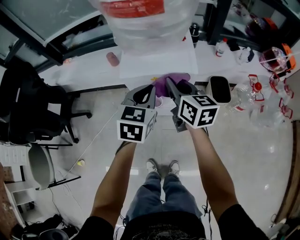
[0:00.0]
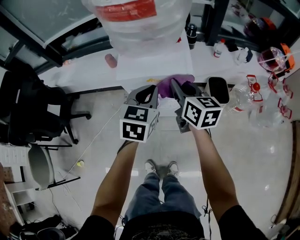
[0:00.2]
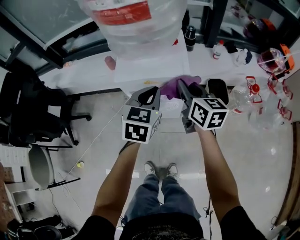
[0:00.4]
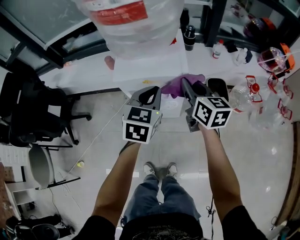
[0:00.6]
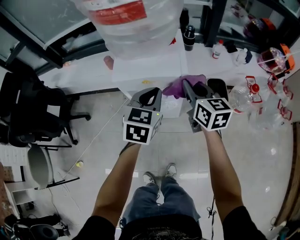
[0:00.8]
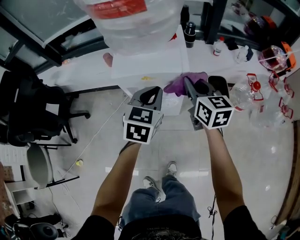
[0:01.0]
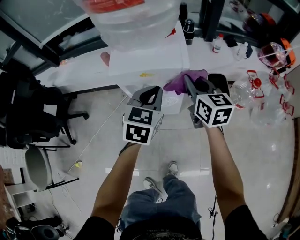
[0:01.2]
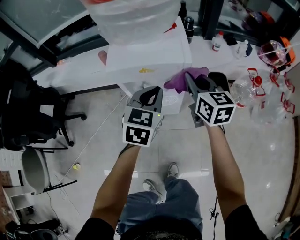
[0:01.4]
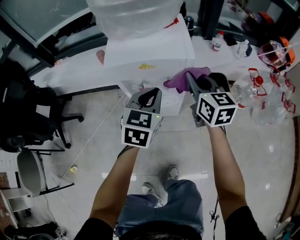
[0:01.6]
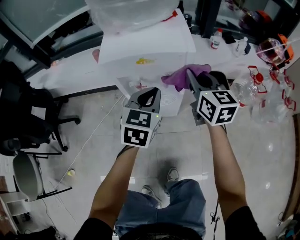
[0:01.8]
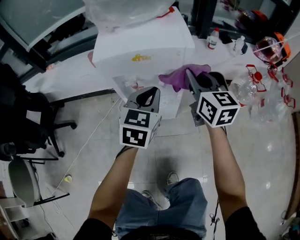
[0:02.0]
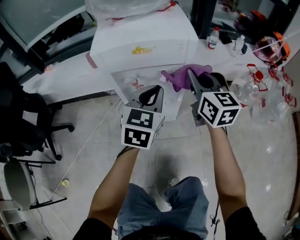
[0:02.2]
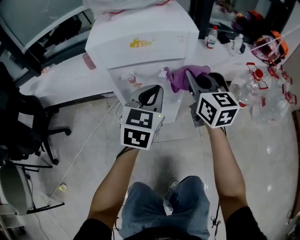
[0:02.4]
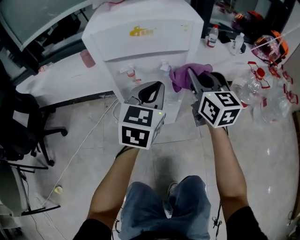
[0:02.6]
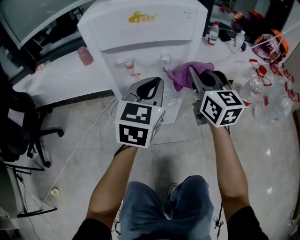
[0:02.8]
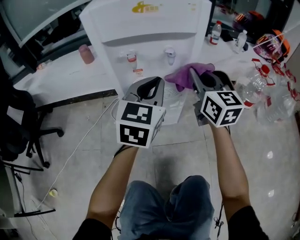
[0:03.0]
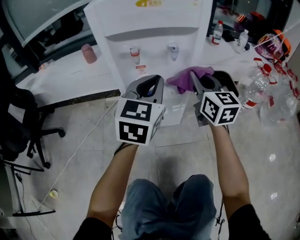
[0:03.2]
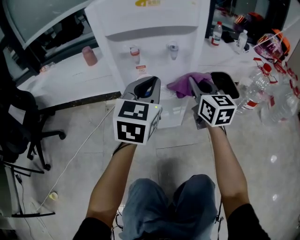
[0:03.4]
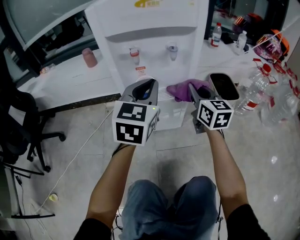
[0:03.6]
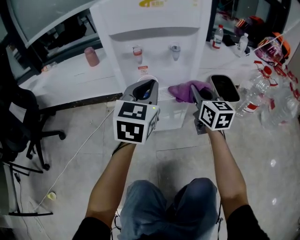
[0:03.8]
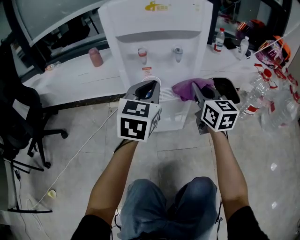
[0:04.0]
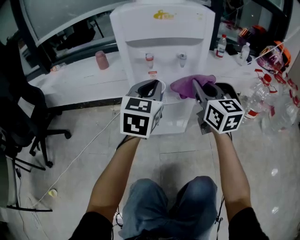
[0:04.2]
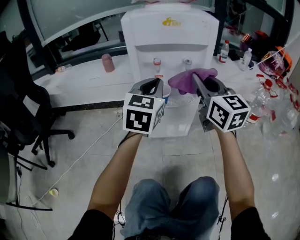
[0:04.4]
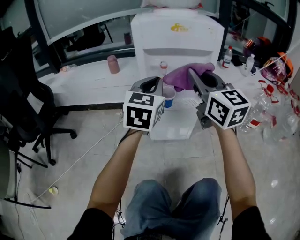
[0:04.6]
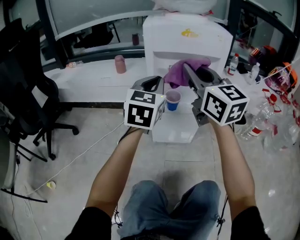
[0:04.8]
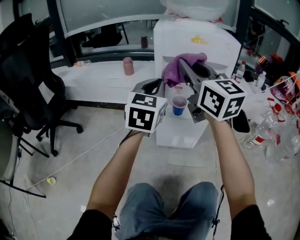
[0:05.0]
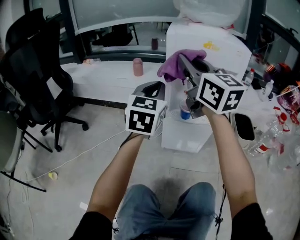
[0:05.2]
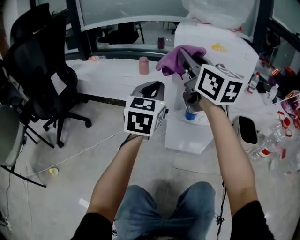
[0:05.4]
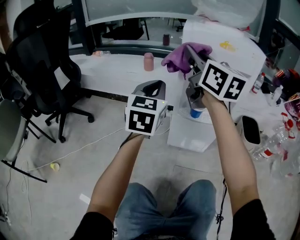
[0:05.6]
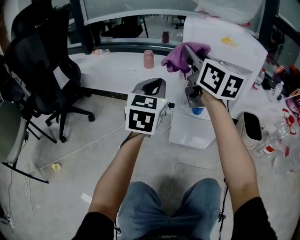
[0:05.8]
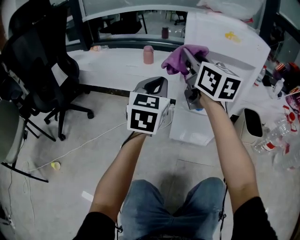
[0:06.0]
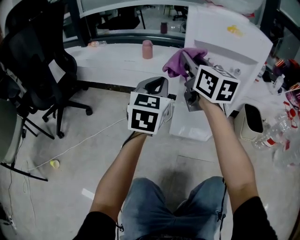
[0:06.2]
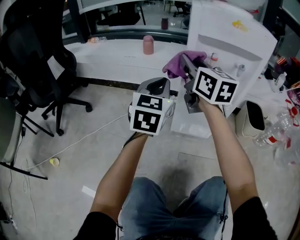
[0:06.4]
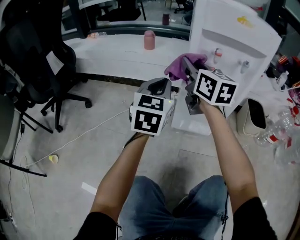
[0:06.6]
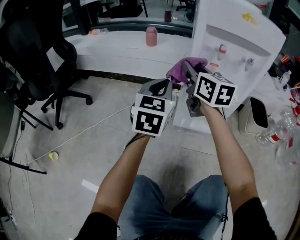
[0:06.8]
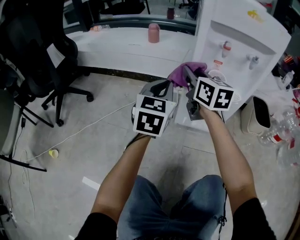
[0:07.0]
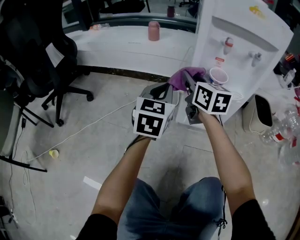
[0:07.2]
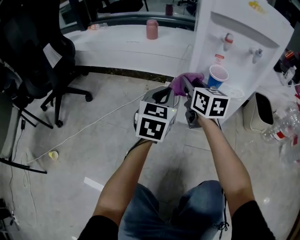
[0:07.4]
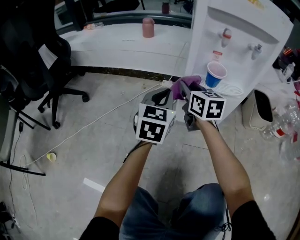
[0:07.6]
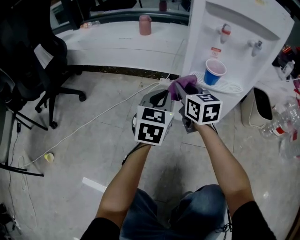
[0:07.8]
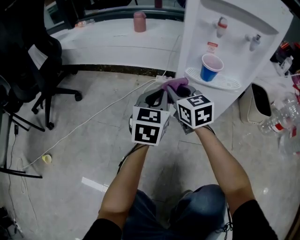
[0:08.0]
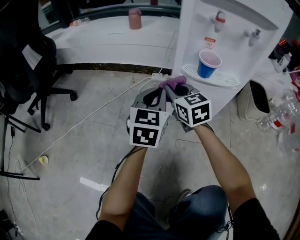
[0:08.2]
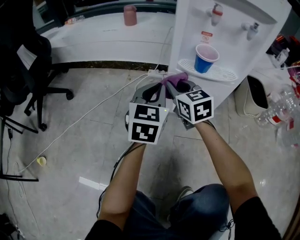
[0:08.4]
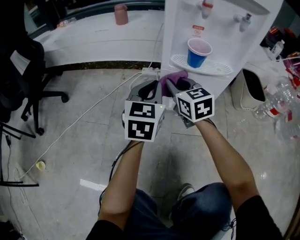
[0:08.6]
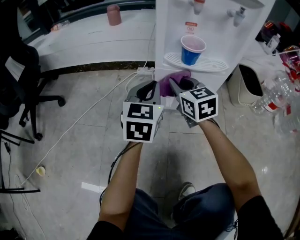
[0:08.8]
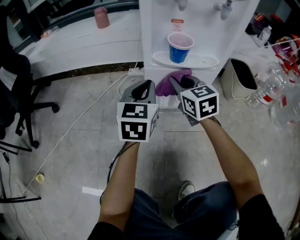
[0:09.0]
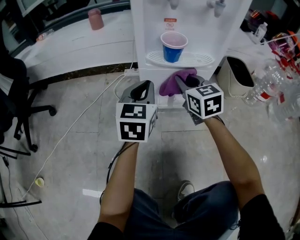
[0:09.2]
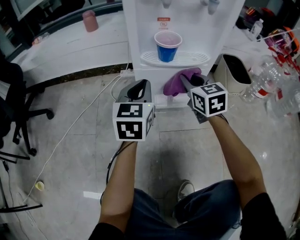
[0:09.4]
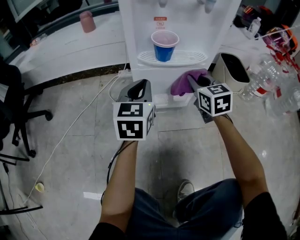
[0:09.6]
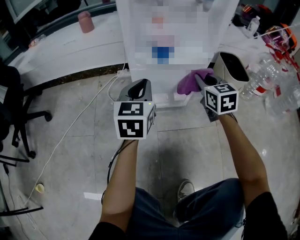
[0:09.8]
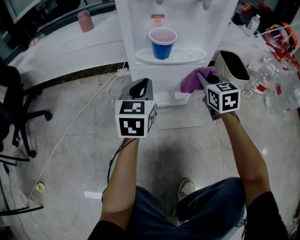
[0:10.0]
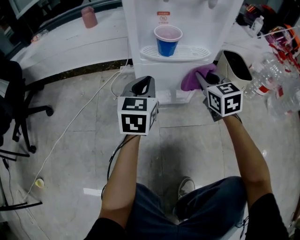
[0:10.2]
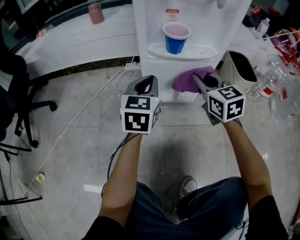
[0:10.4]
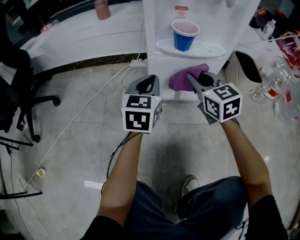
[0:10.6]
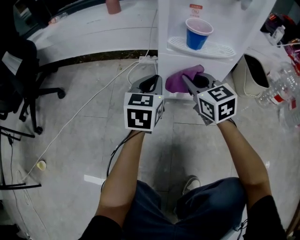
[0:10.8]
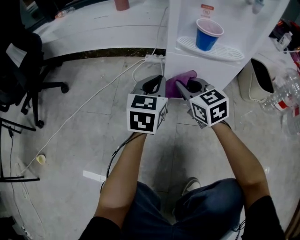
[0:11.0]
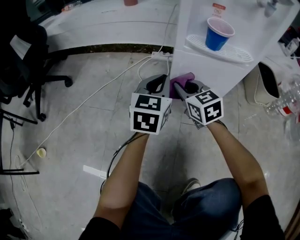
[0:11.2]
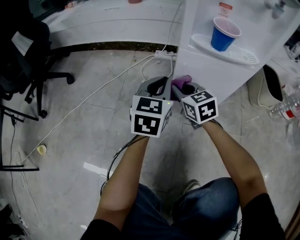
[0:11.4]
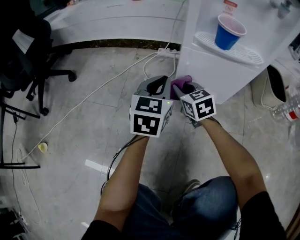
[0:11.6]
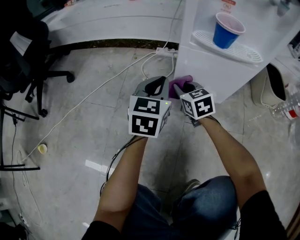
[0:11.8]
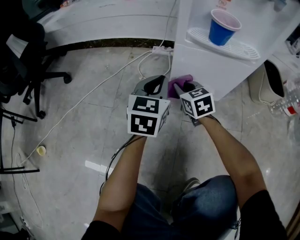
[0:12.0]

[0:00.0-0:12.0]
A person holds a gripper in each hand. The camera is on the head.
0:00.0 to 0:01.6: The left gripper is displaced downward by roughly 10 cm; the right gripper shifts about 10 cm to the right and downward.
0:01.6 to 0:03.0: Both grippers move downward, about 15 cm.
0:03.0 to 0:04.4: The left gripper travels to the left by some 5 cm; the right gripper is displaced backward, to the left and upward by some 10 cm.
0:04.4 to 0:06.0: The left gripper shifts some 15 cm to the left, while the right gripper moves to the left and forward, approximately 20 cm.
0:06.0 to 0:07.6: The right gripper shifts roughly 30 cm downward, and swivels roughly 20 degrees; the left gripper goes about 20 cm downward.
0:07.6 to 0:09.0: The right gripper travels to the right and downward by about 10 cm. Meanwhile the left gripper heads to the right, covering approximately 5 cm.
0:09.0 to 0:10.4: The right gripper moves to the right, about 10 cm.
0:10.4 to 0:12.0: The right gripper travels downward and to the left by some 25 cm; the left gripper shifts approximately 10 cm to the left and downward.

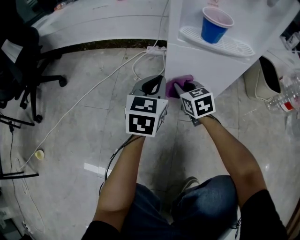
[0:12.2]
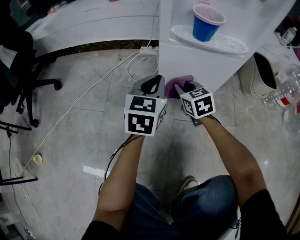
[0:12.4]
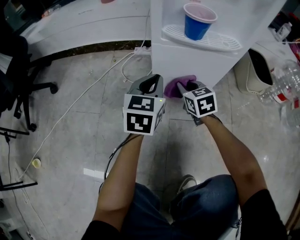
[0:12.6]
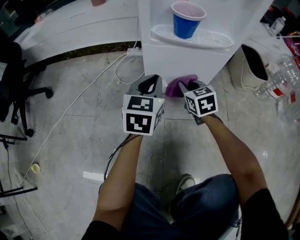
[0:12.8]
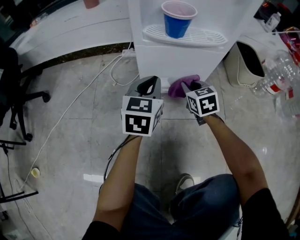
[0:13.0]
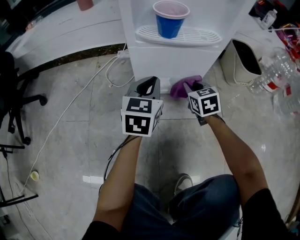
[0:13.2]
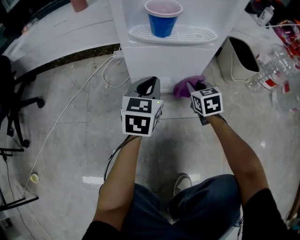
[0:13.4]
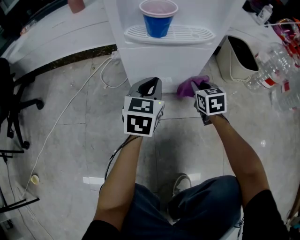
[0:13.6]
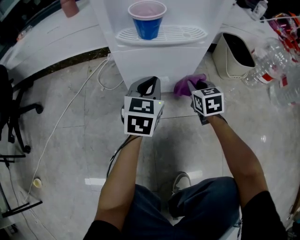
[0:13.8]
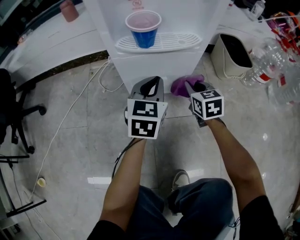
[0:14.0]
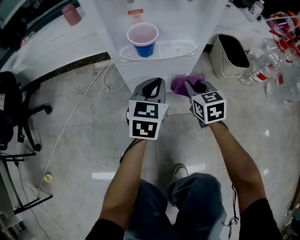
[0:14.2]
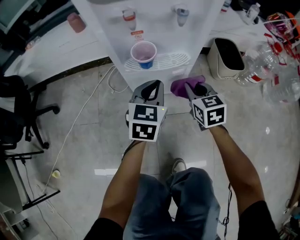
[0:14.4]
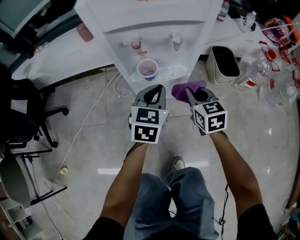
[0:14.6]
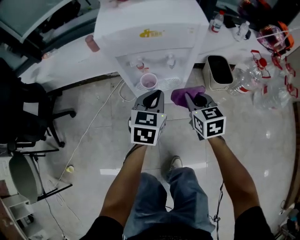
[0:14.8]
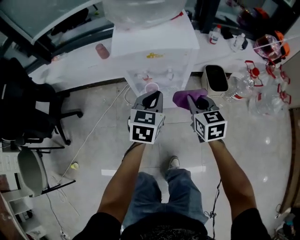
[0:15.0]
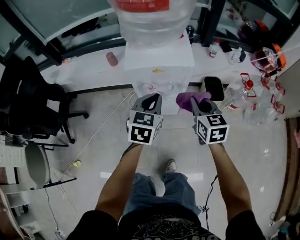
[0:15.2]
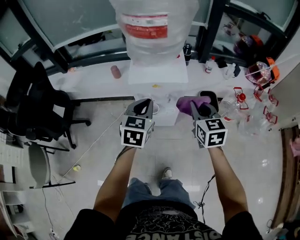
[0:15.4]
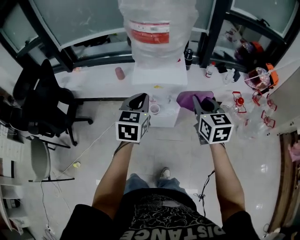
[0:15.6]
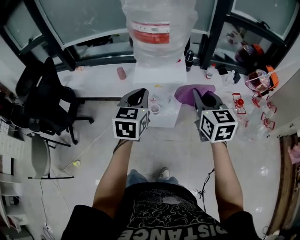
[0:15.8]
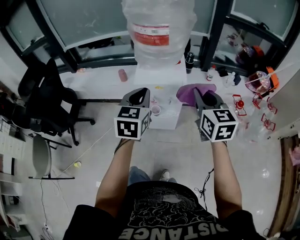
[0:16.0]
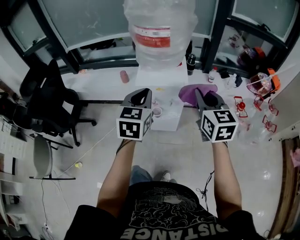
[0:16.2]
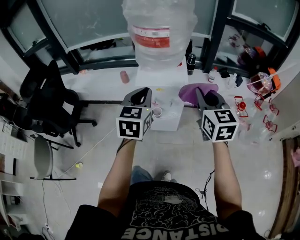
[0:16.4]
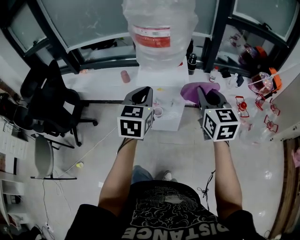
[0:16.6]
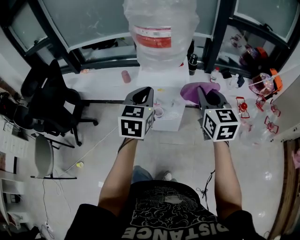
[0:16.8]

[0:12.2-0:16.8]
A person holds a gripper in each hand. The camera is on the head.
0:12.2 to 0:13.8: The right gripper is displaced to the right by about 20 cm, and changes its angle by approximately 20 degrees; the left gripper heads to the right, covering some 15 cm.
0:13.8 to 0:15.2: Both grippers move upward, about 50 cm.
0:15.2 to 0:16.8: The grippers both shift upward by about 20 cm.

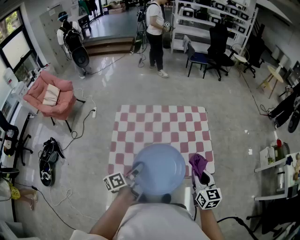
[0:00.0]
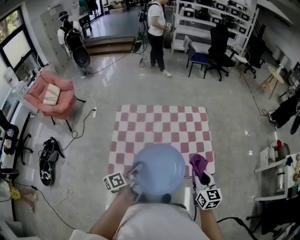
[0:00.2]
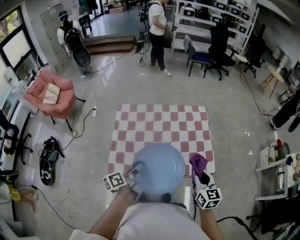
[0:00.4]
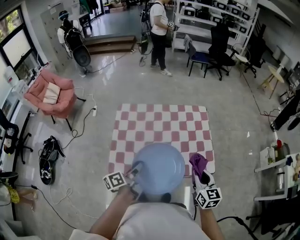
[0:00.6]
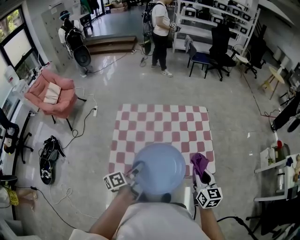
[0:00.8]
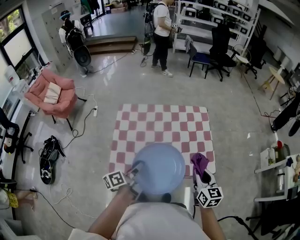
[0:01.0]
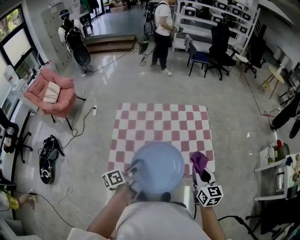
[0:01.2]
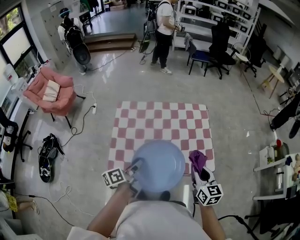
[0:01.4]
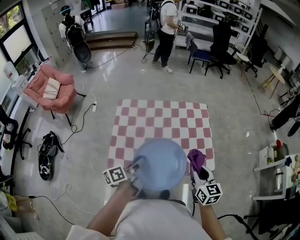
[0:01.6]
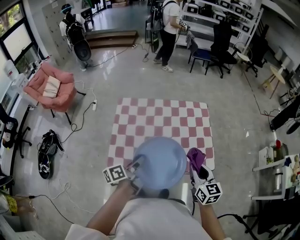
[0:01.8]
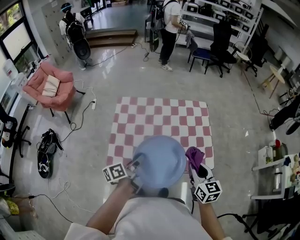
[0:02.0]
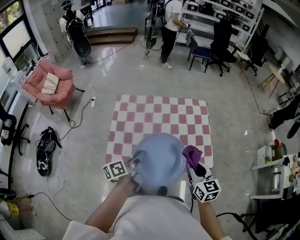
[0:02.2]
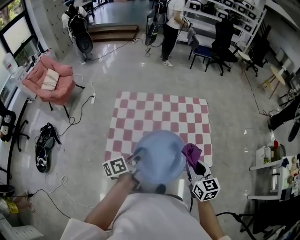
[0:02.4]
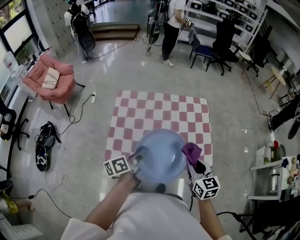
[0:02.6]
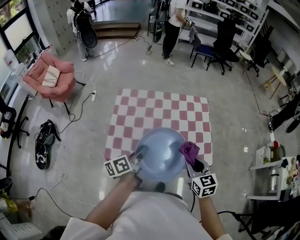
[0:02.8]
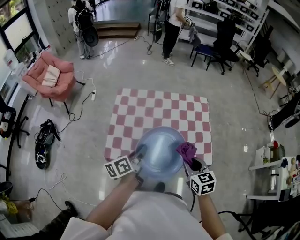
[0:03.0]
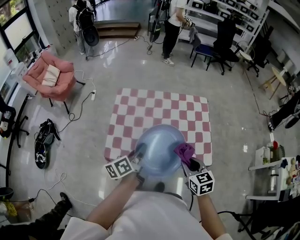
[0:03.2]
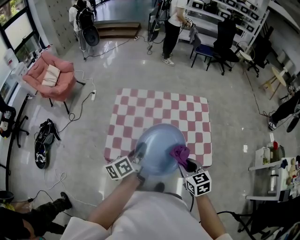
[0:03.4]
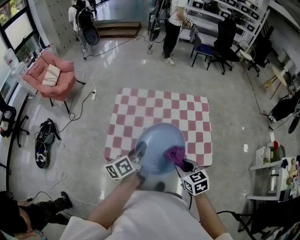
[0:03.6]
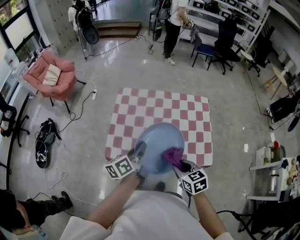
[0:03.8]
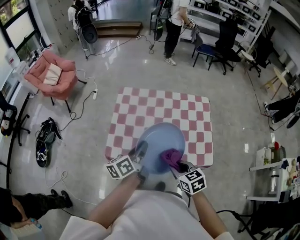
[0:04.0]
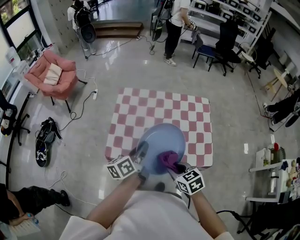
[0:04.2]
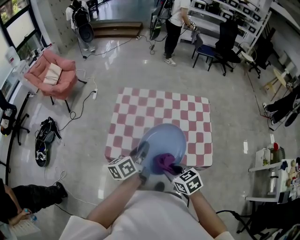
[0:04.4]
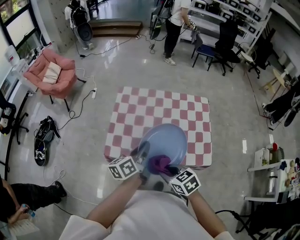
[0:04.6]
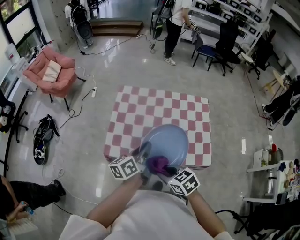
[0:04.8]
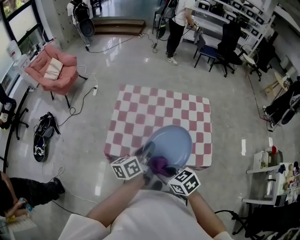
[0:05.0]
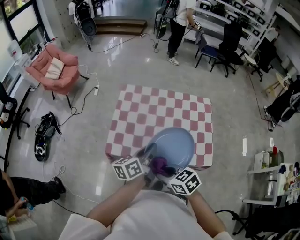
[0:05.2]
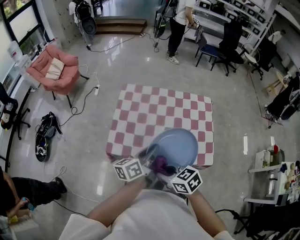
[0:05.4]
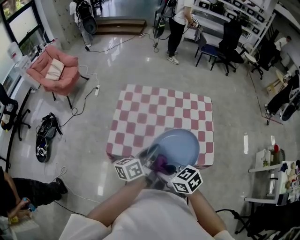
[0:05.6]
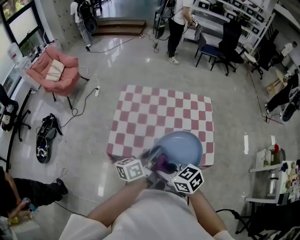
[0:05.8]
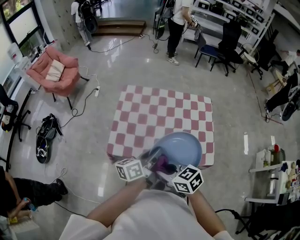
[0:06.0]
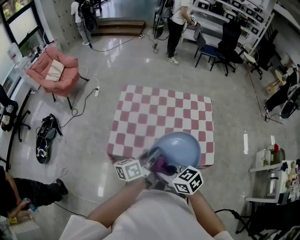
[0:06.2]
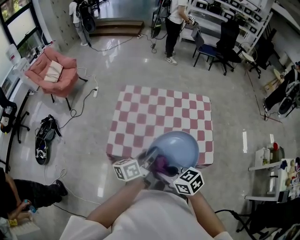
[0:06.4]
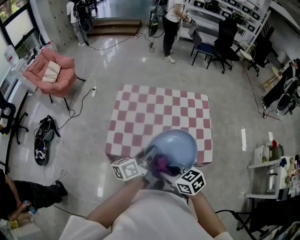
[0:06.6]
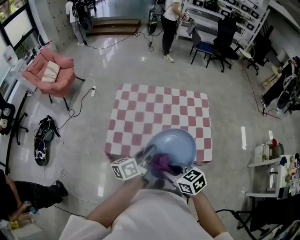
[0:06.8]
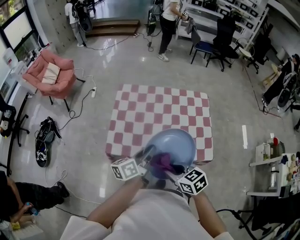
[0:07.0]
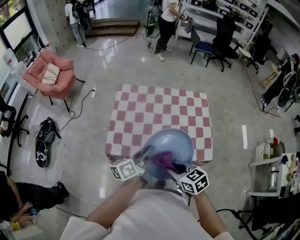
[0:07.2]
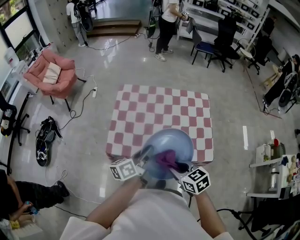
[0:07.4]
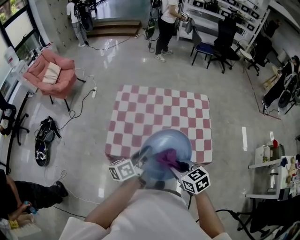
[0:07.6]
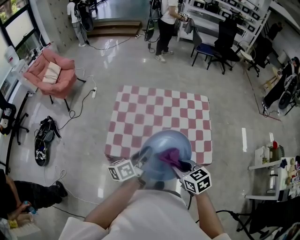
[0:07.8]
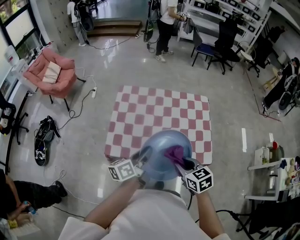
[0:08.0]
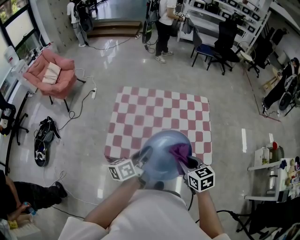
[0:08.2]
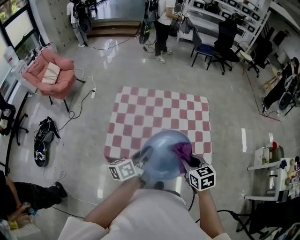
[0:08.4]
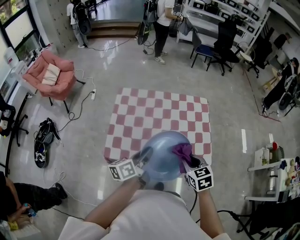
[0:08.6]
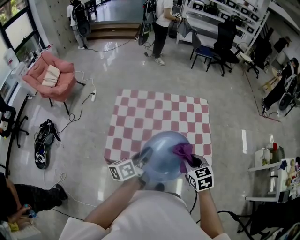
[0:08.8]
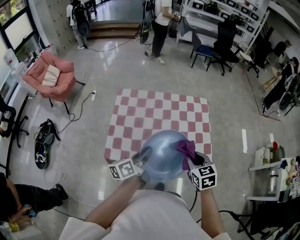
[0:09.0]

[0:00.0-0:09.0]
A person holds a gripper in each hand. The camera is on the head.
0:00.0 to 0:03.0: The grippers stay close to where they were, moving slightly.
0:03.0 to 0:04.4: The right gripper heads to the left, covering about 10 cm, and swivels approximately 30 degrees.
0:04.4 to 0:06.0: The left gripper moves roughly 5 cm, while the right gripper heads to the left and upward, covering roughly 10 cm.
0:06.0 to 0:07.6: The right gripper moves to the right, approximately 10 cm.
0:07.6 to 0:09.0: The right gripper goes some 10 cm to the right and forward, and rotates about 20 degrees.
